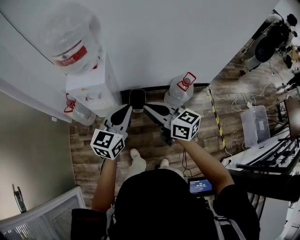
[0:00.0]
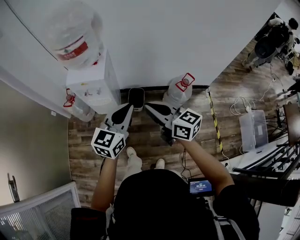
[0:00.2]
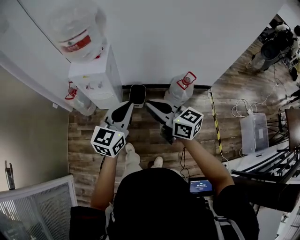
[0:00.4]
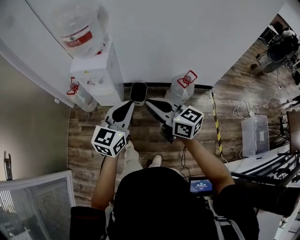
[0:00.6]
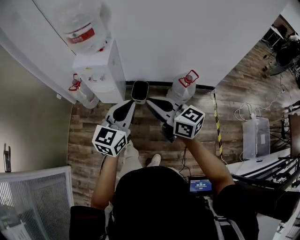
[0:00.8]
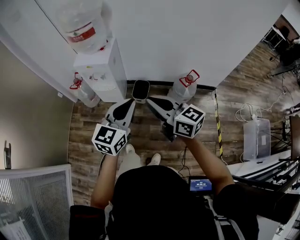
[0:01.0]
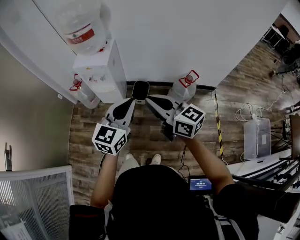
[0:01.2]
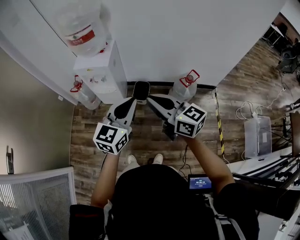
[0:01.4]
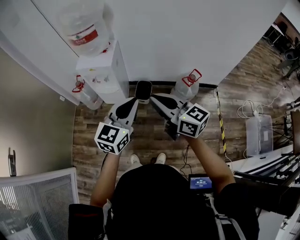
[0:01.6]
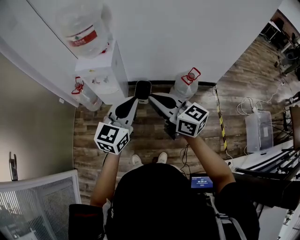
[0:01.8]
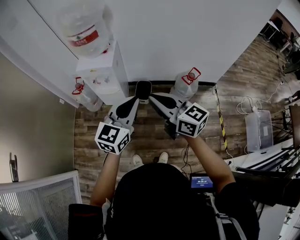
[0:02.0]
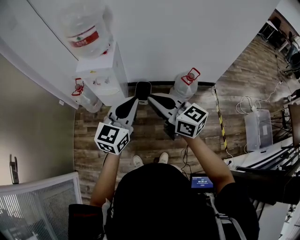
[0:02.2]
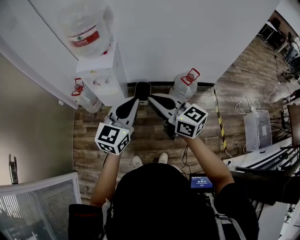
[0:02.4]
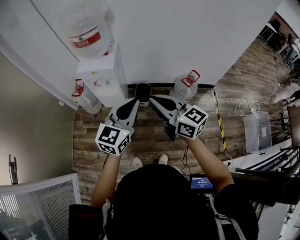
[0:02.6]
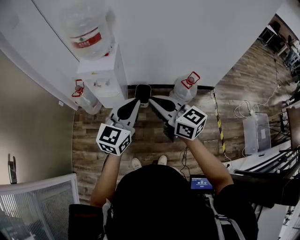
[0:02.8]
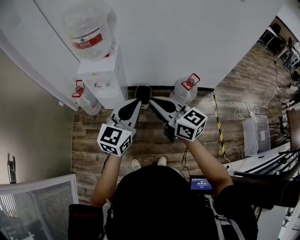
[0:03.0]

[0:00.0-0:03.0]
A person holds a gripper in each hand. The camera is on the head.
0:00.0 to 0:01.6: The grippers both shift backward by about 10 cm.
0:01.6 to 0:03.0: There are only small adjustments of the grippers.

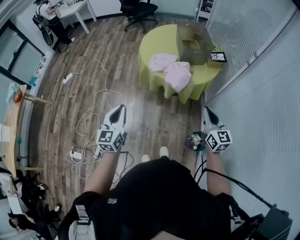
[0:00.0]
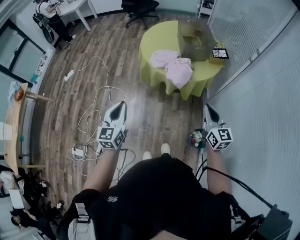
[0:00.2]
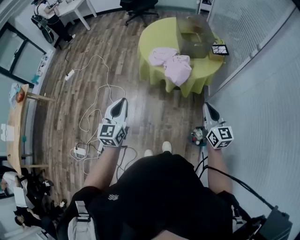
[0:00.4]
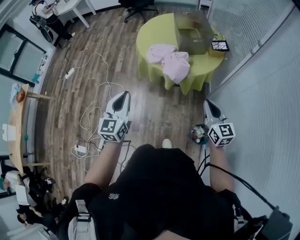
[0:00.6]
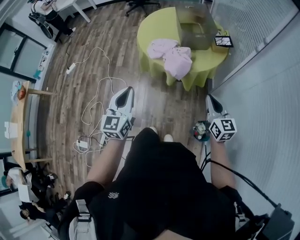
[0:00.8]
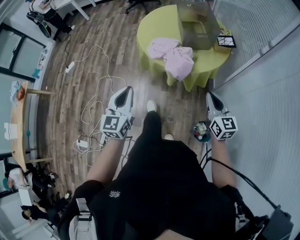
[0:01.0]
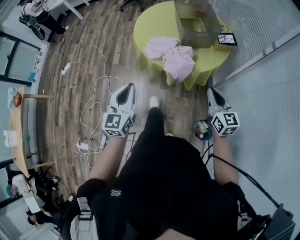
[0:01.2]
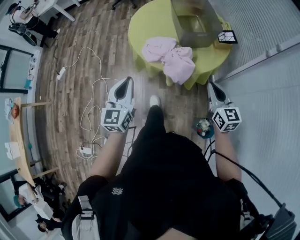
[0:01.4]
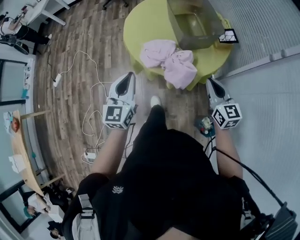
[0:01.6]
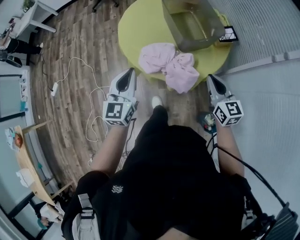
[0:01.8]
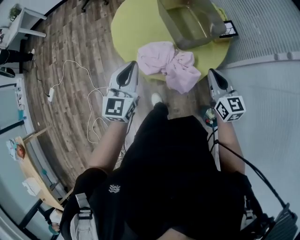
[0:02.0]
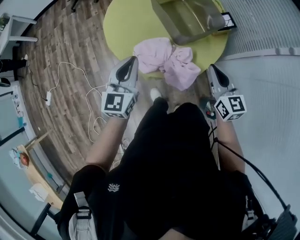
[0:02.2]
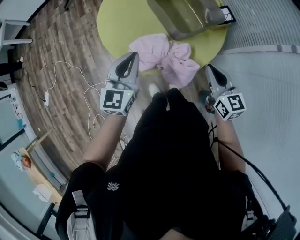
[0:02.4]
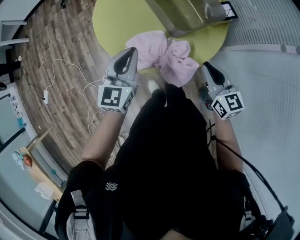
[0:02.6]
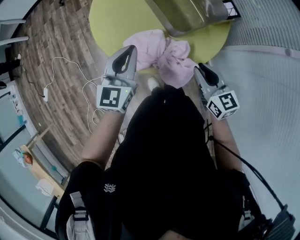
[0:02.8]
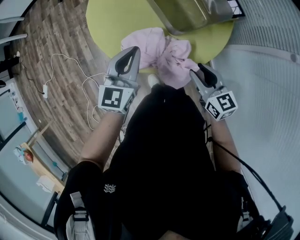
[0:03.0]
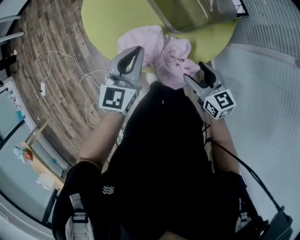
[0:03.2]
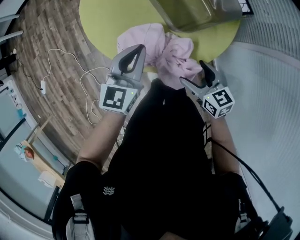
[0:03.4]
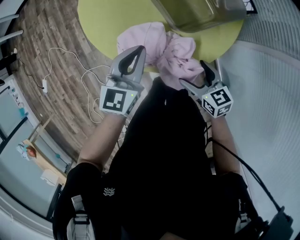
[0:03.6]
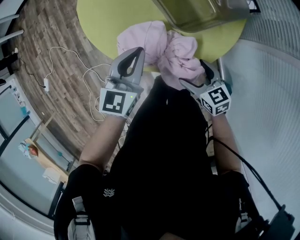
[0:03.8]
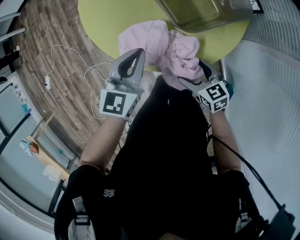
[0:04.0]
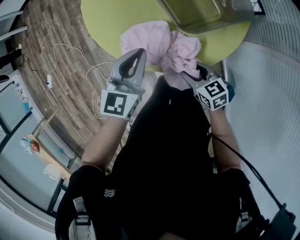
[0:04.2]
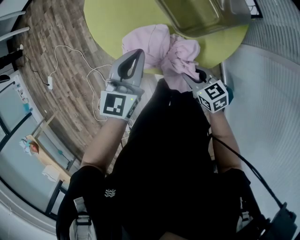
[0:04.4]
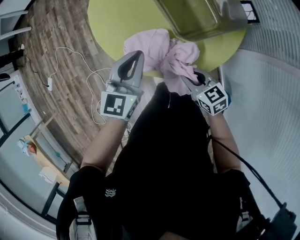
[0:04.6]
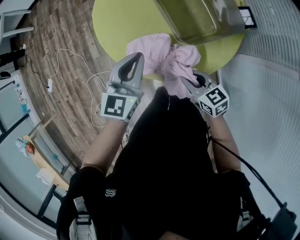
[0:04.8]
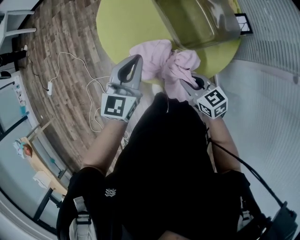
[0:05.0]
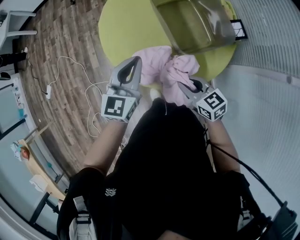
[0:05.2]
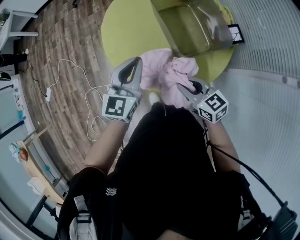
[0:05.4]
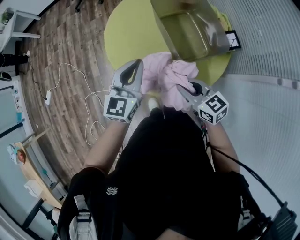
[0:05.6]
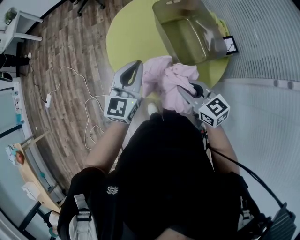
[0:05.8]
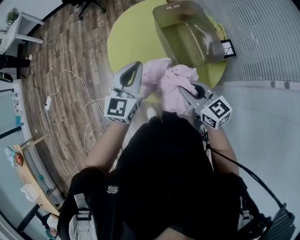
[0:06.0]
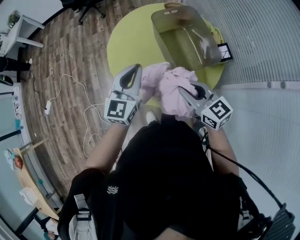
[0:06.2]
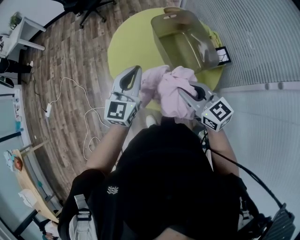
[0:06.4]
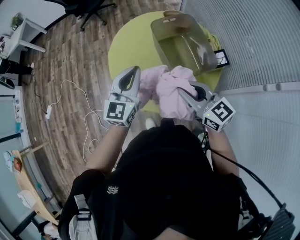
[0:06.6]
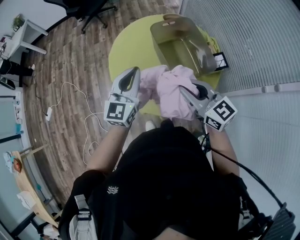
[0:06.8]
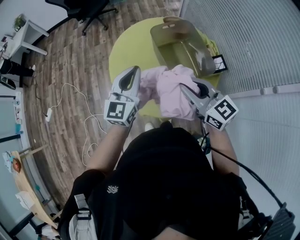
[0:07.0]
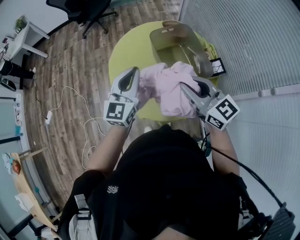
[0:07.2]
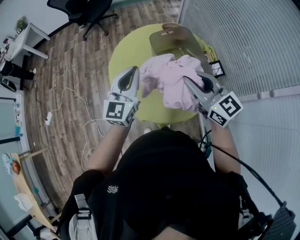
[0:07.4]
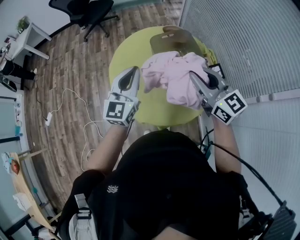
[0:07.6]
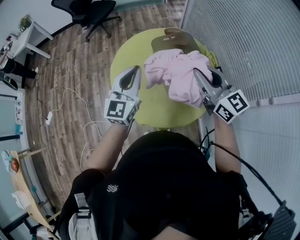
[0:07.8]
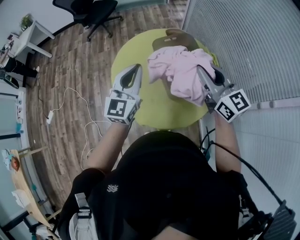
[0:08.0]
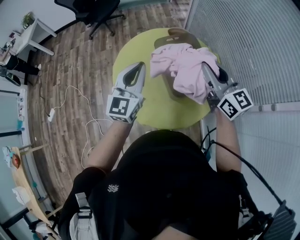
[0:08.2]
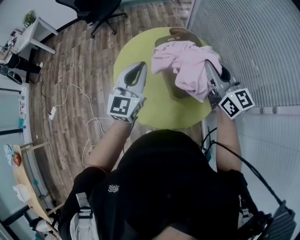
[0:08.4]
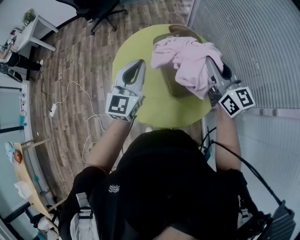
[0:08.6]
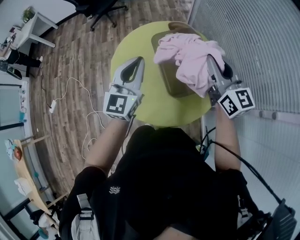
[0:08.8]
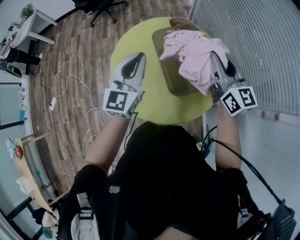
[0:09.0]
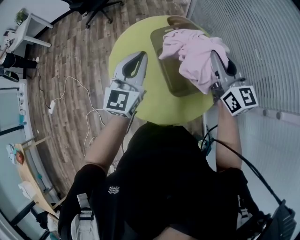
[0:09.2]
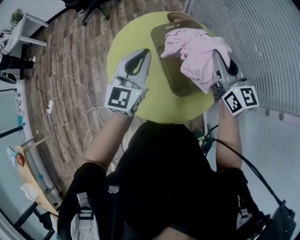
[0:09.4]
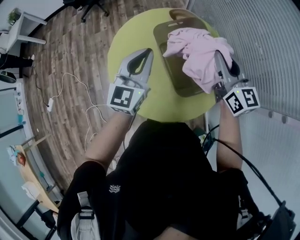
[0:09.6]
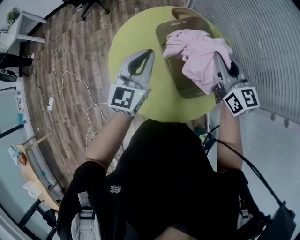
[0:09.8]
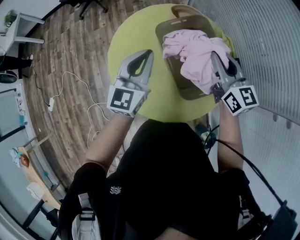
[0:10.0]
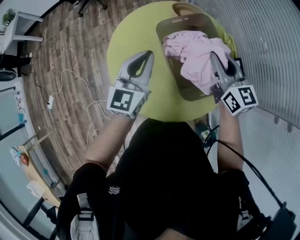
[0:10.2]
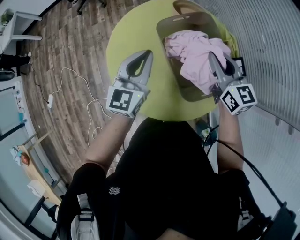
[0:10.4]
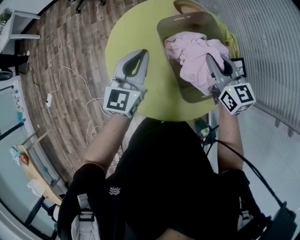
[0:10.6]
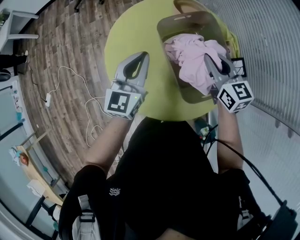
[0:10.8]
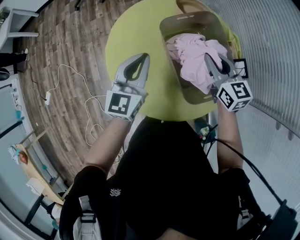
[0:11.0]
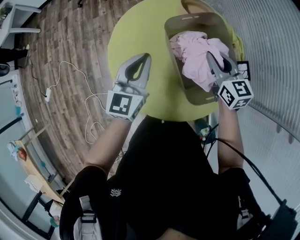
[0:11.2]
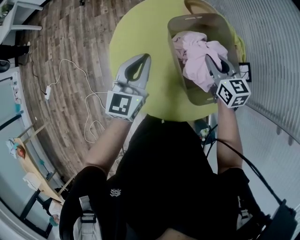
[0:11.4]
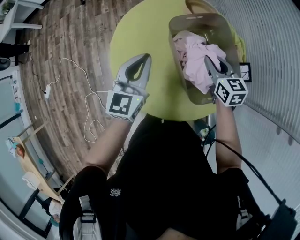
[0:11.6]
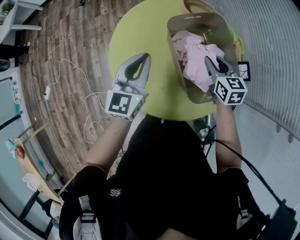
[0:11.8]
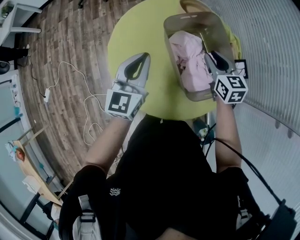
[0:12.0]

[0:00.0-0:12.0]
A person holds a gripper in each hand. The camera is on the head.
0:00.0 to 0:01.6: Both grippers travel together forward, about 30 cm.
0:01.6 to 0:03.0: The right gripper goes some 15 cm forward, downward and to the left. Meanwhile the left gripper heads forward and downward, covering some 25 cm, and turns by approximately 20 degrees.
0:03.0 to 0:04.4: The right gripper is displaced downward by some 10 cm, changes its angle by some 20 degrees, and opens, then closes again.
0:04.4 to 0:06.0: The right gripper travels upward by some 25 cm, and rotates roughly 20 degrees. Meanwhile the left gripper goes approximately 15 cm upward.
0:06.0 to 0:07.6: The left gripper travels upward by approximately 10 cm; the right gripper shifts approximately 20 cm upward.
0:07.6 to 0:09.0: The right gripper moves forward and to the right, roughly 15 cm; the left gripper heads forward and to the right, covering about 10 cm.
0:09.0 to 0:10.4: The right gripper shifts approximately 15 cm downward. The left gripper heads downward and forward, covering roughly 10 cm.
0:10.4 to 0:12.0: The right gripper shifts about 10 cm downward.

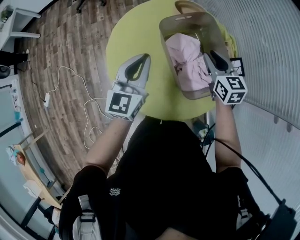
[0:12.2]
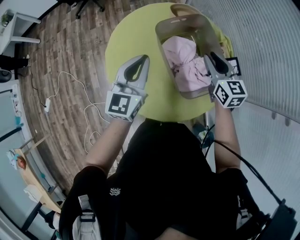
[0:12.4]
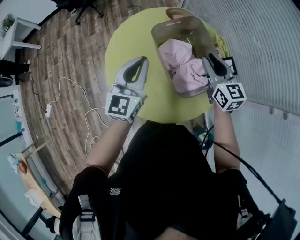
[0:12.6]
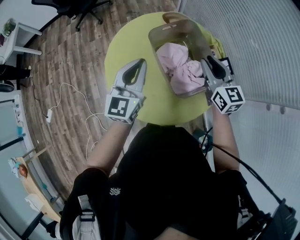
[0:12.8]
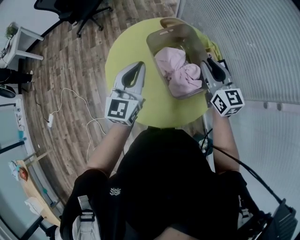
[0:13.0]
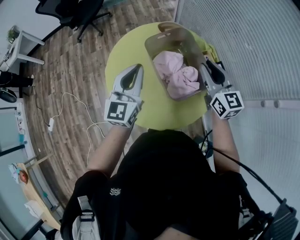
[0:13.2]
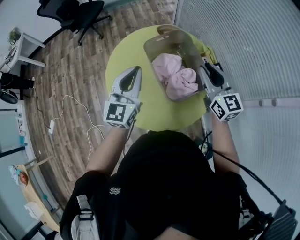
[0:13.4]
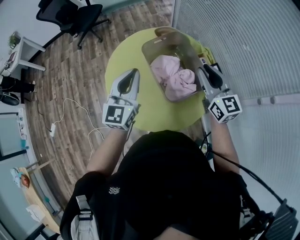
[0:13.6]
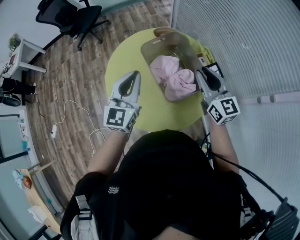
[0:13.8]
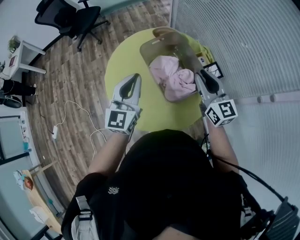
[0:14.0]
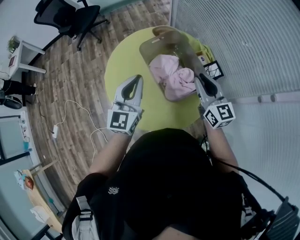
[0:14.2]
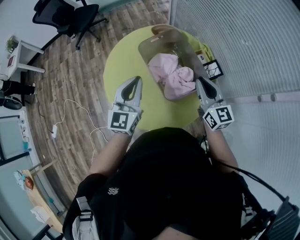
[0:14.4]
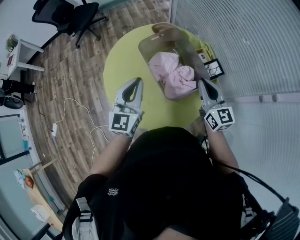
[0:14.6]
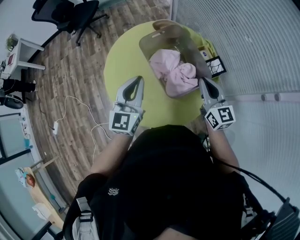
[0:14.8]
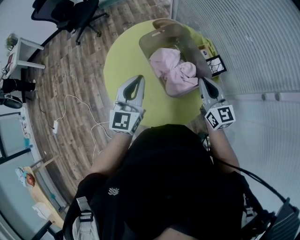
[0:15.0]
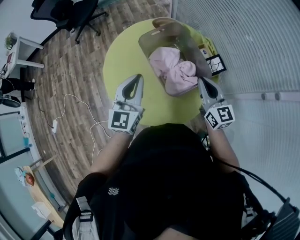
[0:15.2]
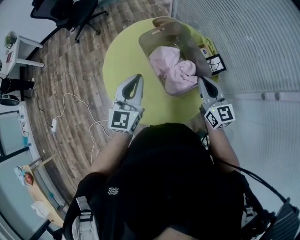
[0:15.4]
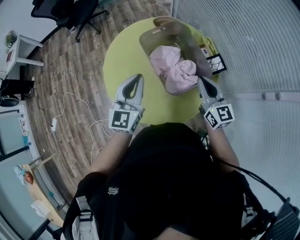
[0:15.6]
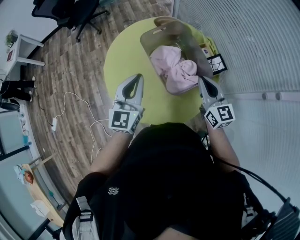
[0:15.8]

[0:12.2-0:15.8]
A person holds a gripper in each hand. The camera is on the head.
0:12.2 to 0:14.0: The left gripper shifts approximately 10 cm upward, to the right and backward; the right gripper goes about 15 cm upward, backward and to the right, and rotates some 30 degrees.
0:14.0 to 0:15.8: The right gripper goes approximately 5 cm downward.

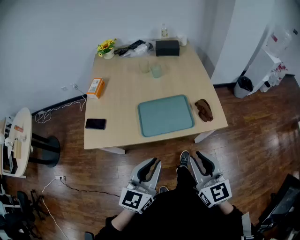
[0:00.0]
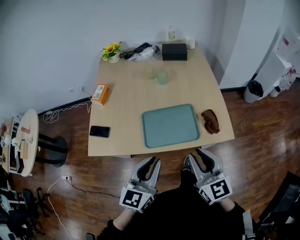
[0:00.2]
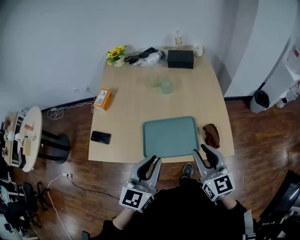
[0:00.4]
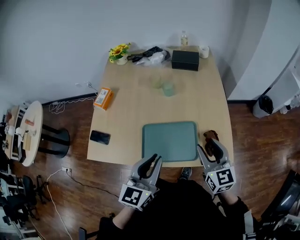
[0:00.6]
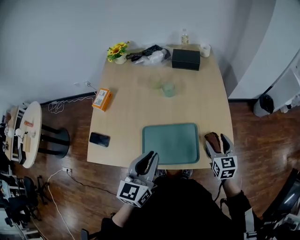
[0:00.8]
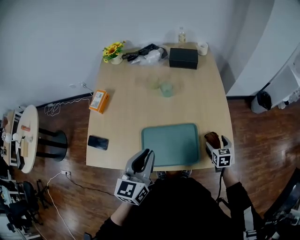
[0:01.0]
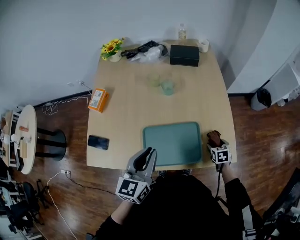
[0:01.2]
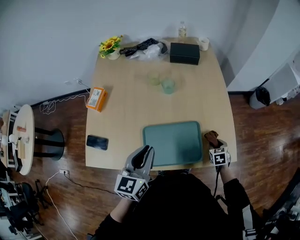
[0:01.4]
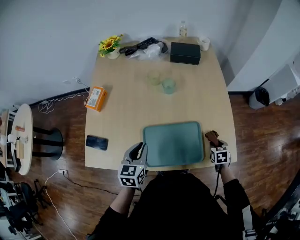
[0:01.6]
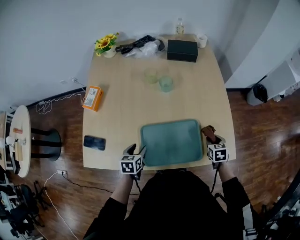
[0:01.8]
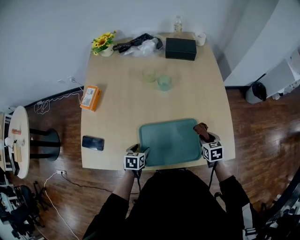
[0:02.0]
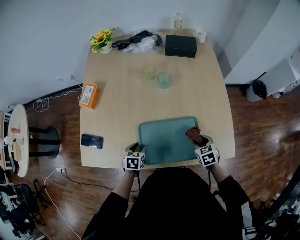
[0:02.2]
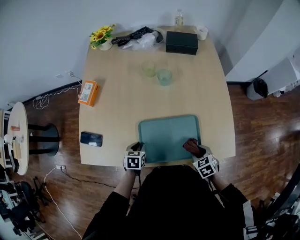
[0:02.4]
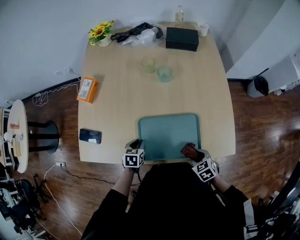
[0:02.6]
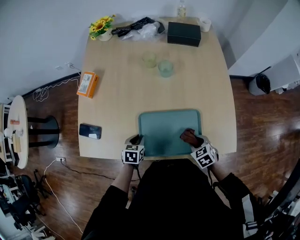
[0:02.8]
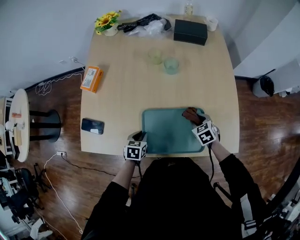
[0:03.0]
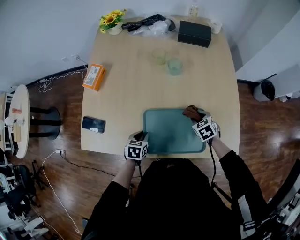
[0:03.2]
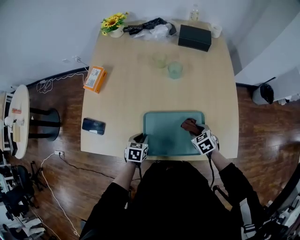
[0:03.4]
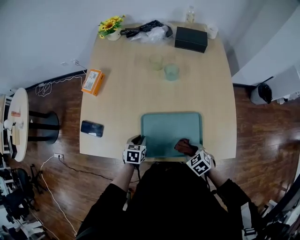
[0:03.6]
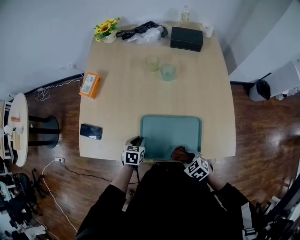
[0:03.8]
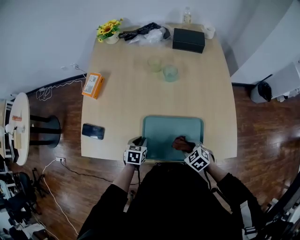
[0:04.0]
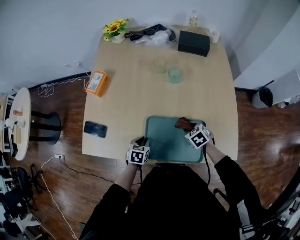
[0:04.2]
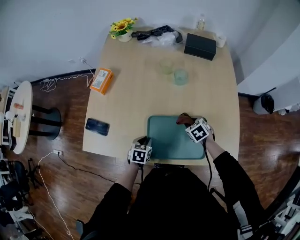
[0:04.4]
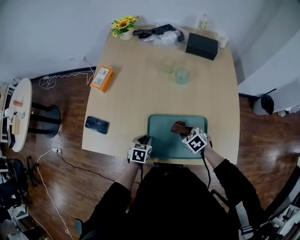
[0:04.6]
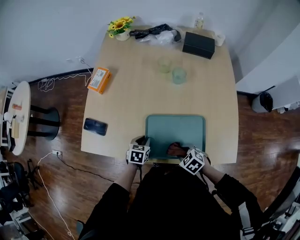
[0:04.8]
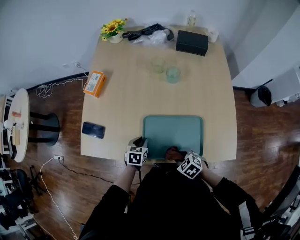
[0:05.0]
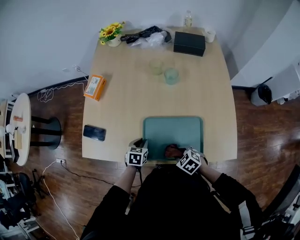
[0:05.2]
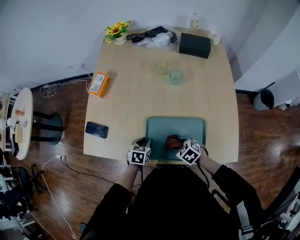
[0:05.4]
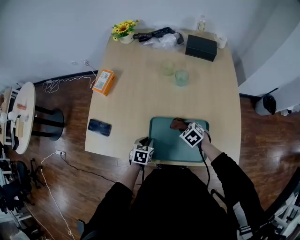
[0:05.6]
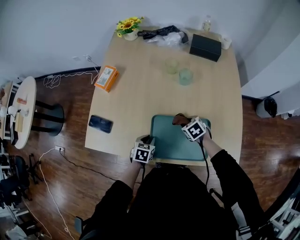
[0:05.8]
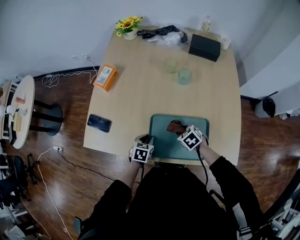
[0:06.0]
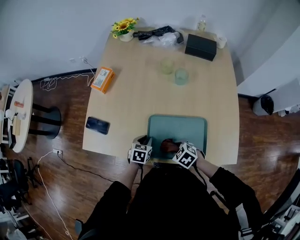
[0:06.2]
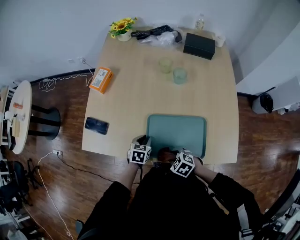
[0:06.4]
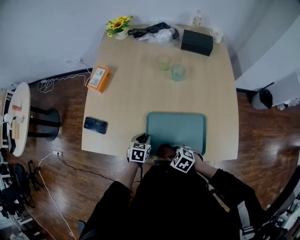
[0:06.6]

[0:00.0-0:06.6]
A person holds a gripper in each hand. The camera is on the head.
0:00.0 to 0:01.6: The right gripper travels downward, forward and to the right by roughly 50 cm, tilts its fingers roughly 50 degrees downward, and opens, then closes once more; the left gripper shifts about 30 cm forward and downward, and swivels about 30 degrees.
0:01.6 to 0:03.2: The right gripper heads to the left and forward, covering approximately 15 cm, and rotates roughly 30 degrees; the left gripper goes some 20 cm downward, changes its angle by about 30 degrees, and opens, then closes again.
0:03.2 to 0:05.0: The right gripper swings forward and backward, some 20 cm each way, with 2 reversals, and swivels approximately 20 degrees.
0:05.0 to 0:06.6: The right gripper travels forward and back again, roughly 20 cm each way.
